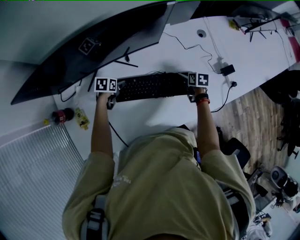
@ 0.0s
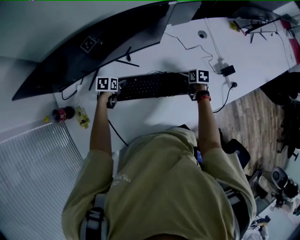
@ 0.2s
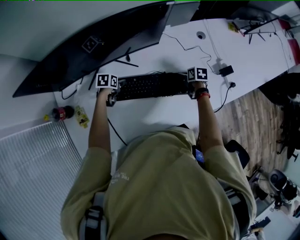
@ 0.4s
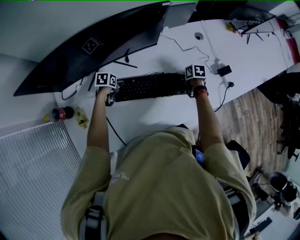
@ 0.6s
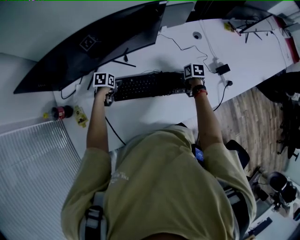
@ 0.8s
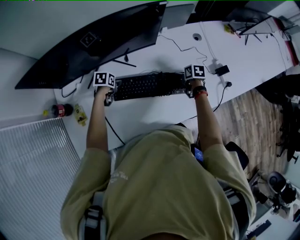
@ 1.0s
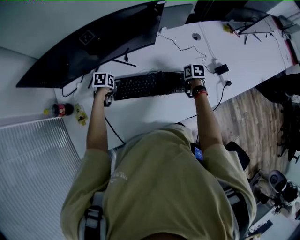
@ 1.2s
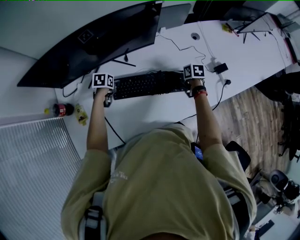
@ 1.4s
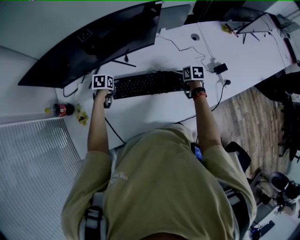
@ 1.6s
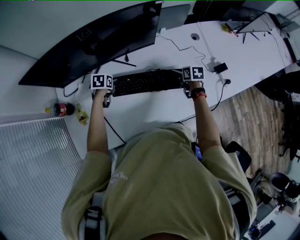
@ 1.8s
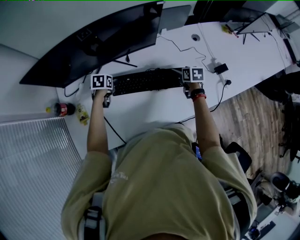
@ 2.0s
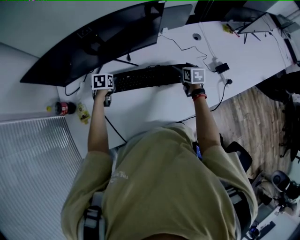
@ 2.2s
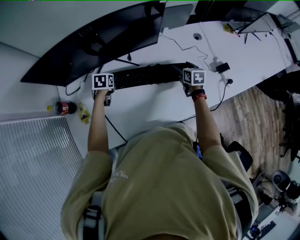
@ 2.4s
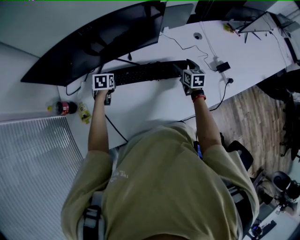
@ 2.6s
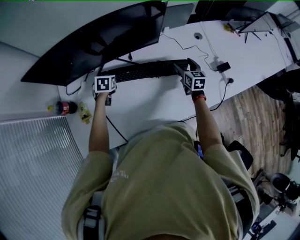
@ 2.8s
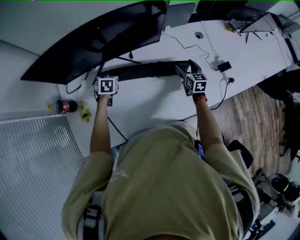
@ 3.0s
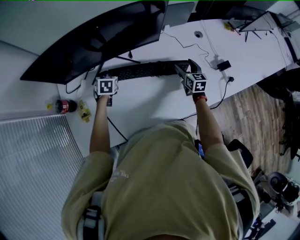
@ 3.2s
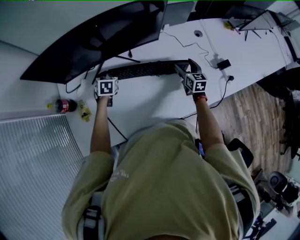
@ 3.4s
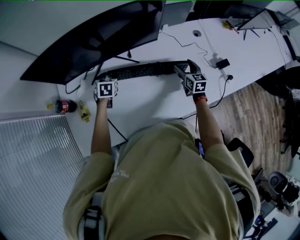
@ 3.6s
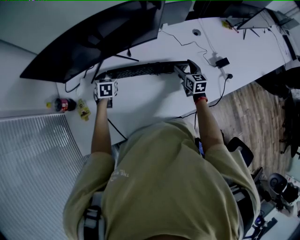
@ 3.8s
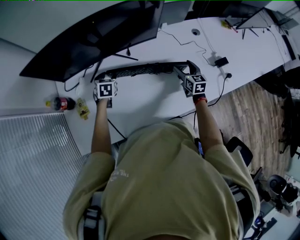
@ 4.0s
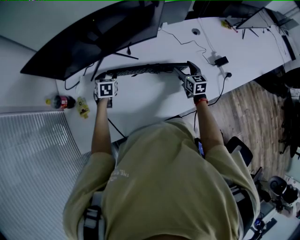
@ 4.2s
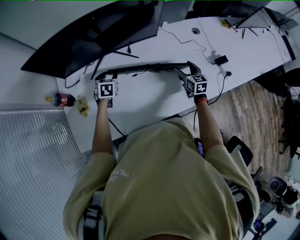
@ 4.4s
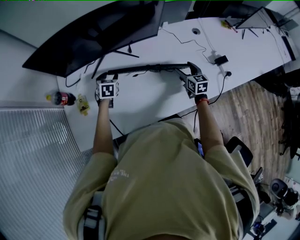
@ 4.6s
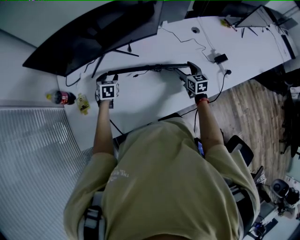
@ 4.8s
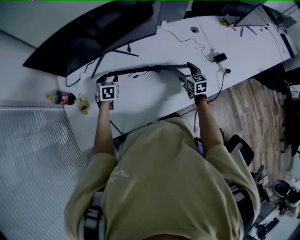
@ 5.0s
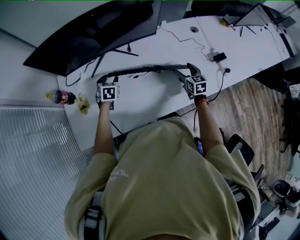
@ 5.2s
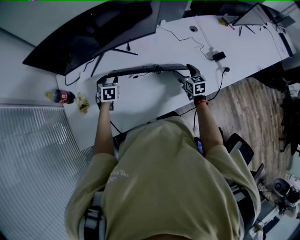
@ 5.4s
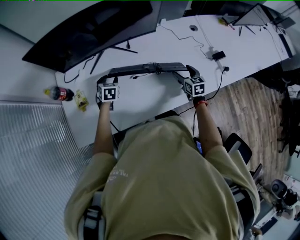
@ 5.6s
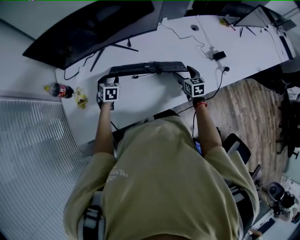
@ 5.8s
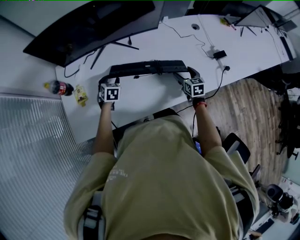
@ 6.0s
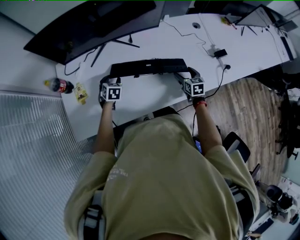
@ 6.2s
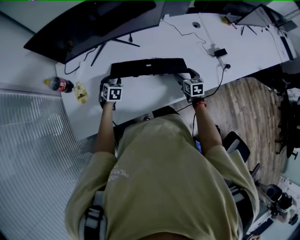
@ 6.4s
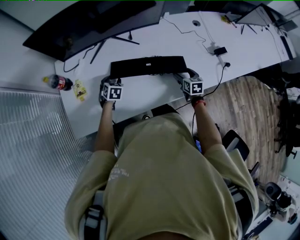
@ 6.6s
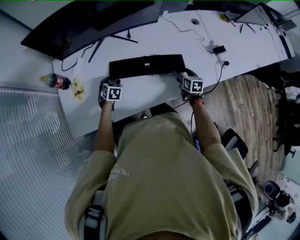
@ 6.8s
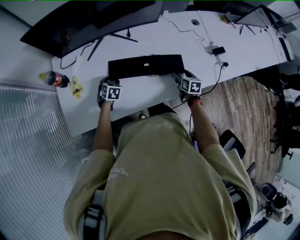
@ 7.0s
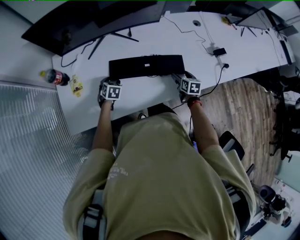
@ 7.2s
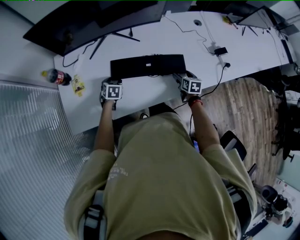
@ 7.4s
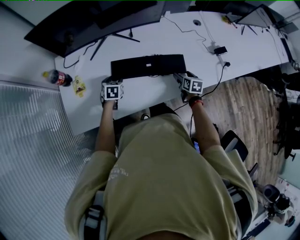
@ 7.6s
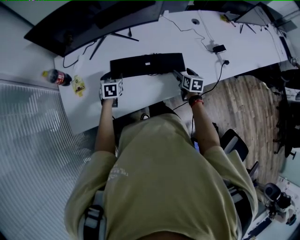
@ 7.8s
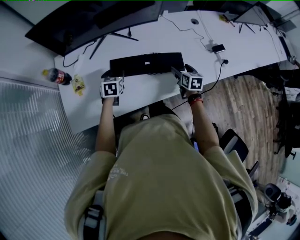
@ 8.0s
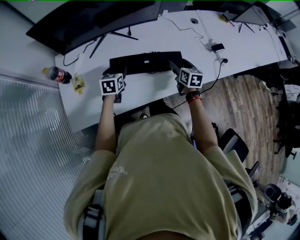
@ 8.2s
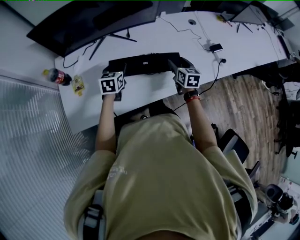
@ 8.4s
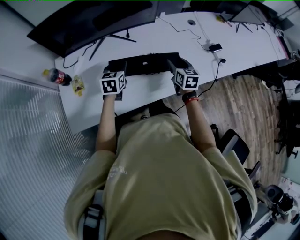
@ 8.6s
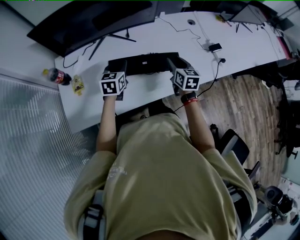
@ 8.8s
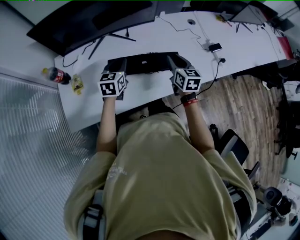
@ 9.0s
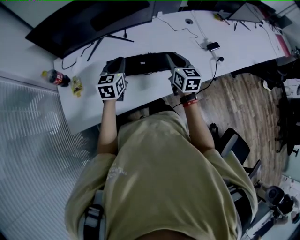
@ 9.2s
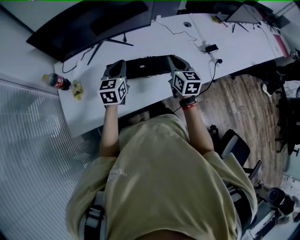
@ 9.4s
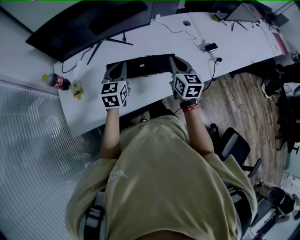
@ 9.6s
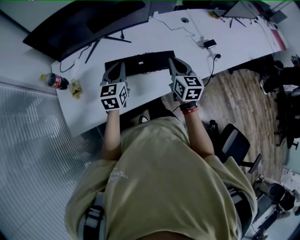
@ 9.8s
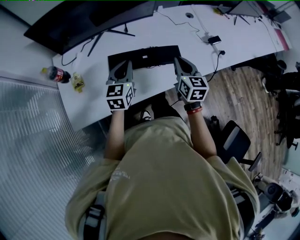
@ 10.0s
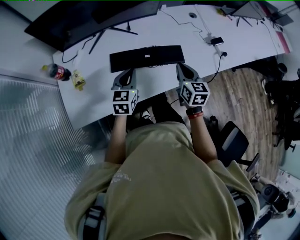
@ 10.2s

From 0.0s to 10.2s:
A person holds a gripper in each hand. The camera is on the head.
From 0.0s to 1.4s: The left gripper changes place by approximately 5 cm.
From 1.4s to 3.0s: The grippers both shift upward by some 5 cm. The right gripper points its fingers roughly 30 degrees further upward; the left gripper turns by about 30 degrees.
From 3.0s to 4.4s: The right gripper is displaced backward by roughly 5 cm.
From 4.4s to 5.8s: The two grippers go some 5 cm backward.
From 5.8s to 7.2s: The right gripper shifts about 5 cm downward. The left gripper goes some 10 cm downward and backward.
From 7.2s to 8.8s: The right gripper heads upward, covering roughly 15 cm, and closes; the left gripper is displaced upward and to the right by roughly 20 cm, changes its angle by roughly 30 degrees, and closes.
From 8.8s to 10.2s: The grippers both shift backward by some 10 cm. The right gripper closes its fingers.

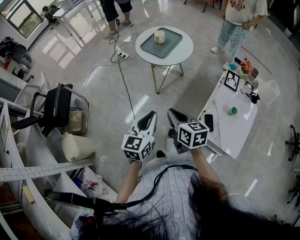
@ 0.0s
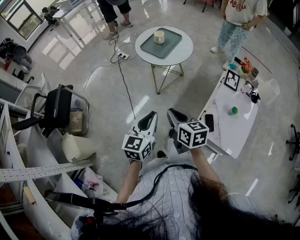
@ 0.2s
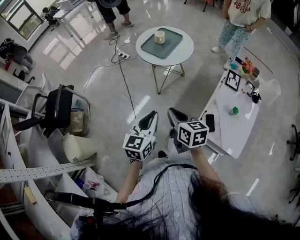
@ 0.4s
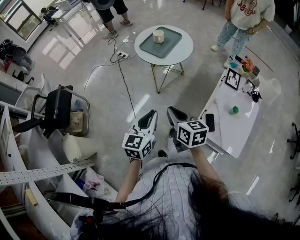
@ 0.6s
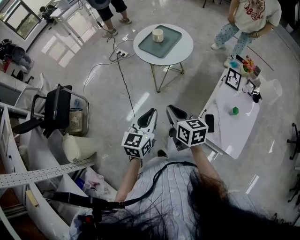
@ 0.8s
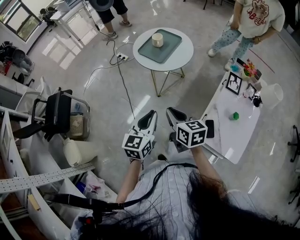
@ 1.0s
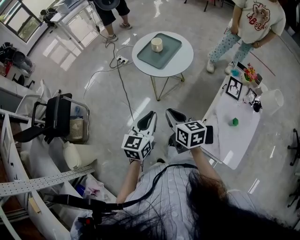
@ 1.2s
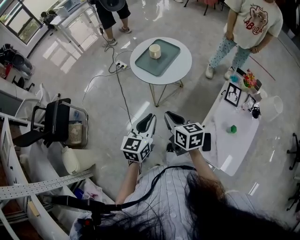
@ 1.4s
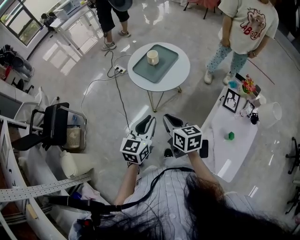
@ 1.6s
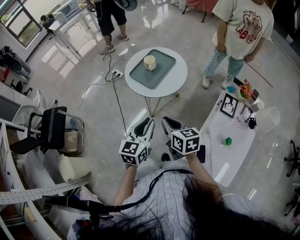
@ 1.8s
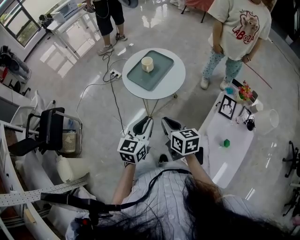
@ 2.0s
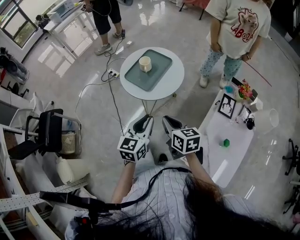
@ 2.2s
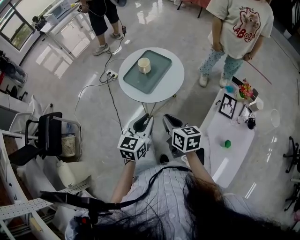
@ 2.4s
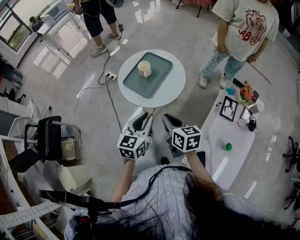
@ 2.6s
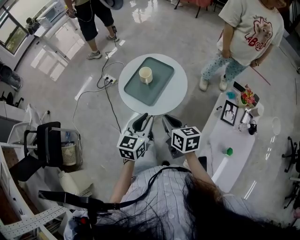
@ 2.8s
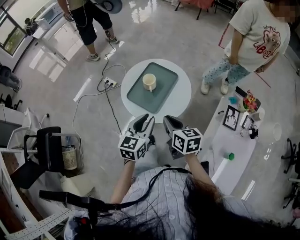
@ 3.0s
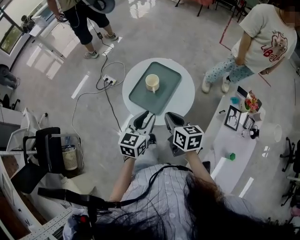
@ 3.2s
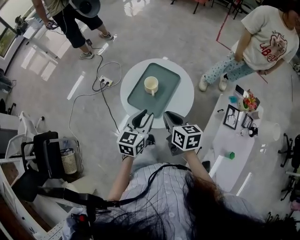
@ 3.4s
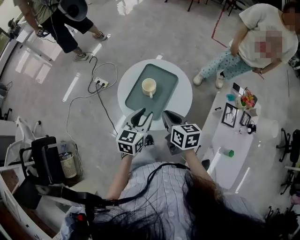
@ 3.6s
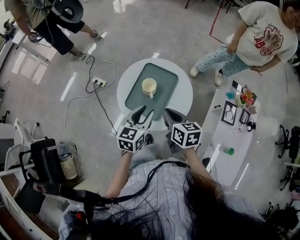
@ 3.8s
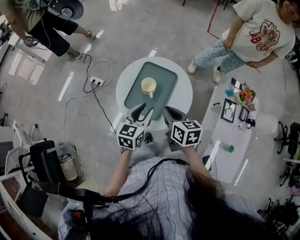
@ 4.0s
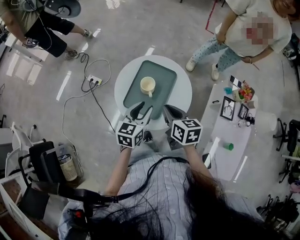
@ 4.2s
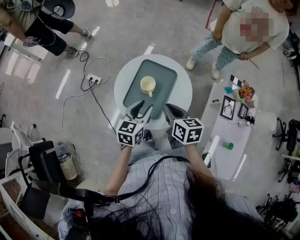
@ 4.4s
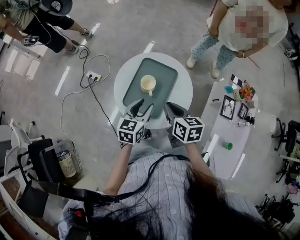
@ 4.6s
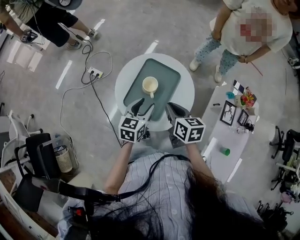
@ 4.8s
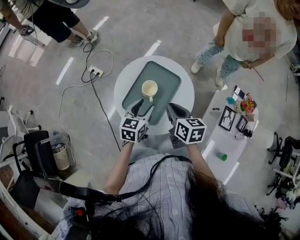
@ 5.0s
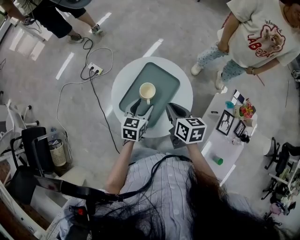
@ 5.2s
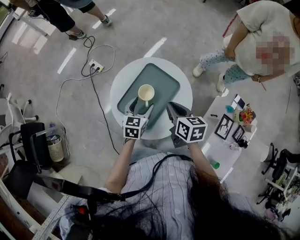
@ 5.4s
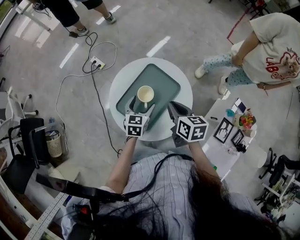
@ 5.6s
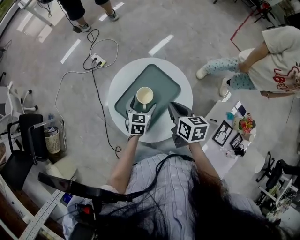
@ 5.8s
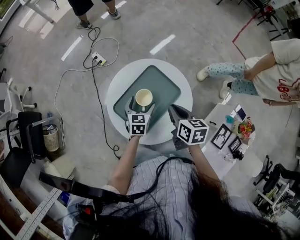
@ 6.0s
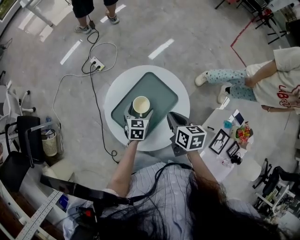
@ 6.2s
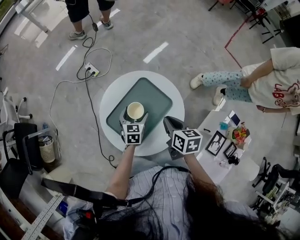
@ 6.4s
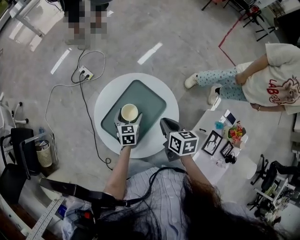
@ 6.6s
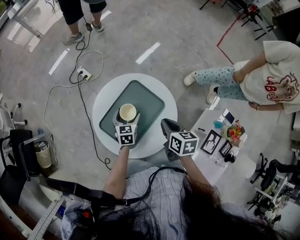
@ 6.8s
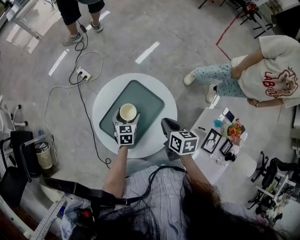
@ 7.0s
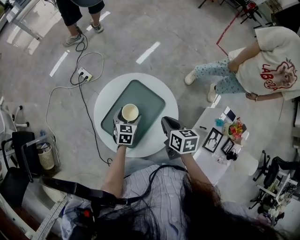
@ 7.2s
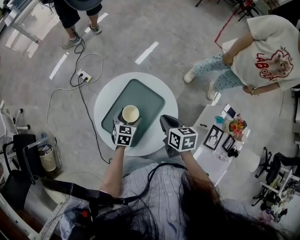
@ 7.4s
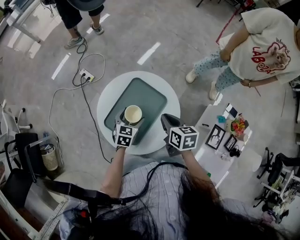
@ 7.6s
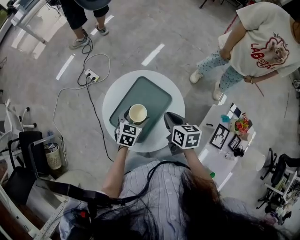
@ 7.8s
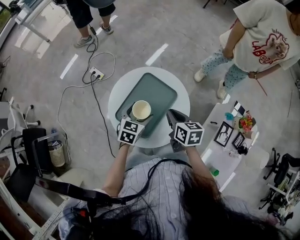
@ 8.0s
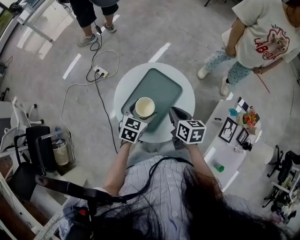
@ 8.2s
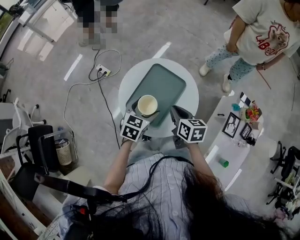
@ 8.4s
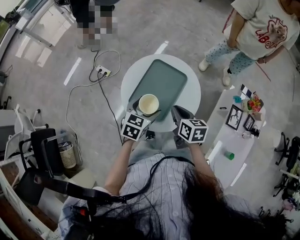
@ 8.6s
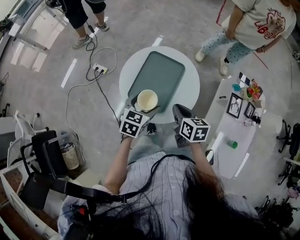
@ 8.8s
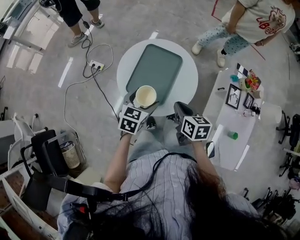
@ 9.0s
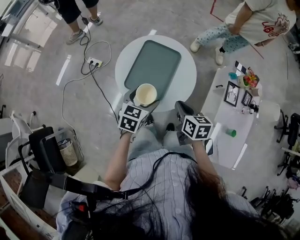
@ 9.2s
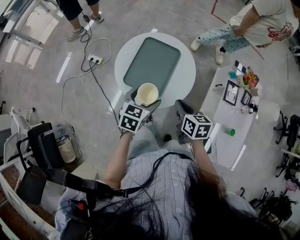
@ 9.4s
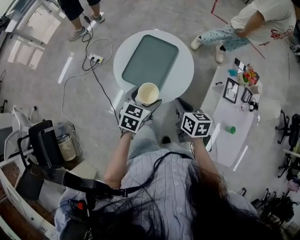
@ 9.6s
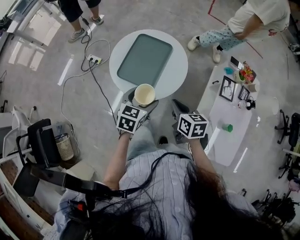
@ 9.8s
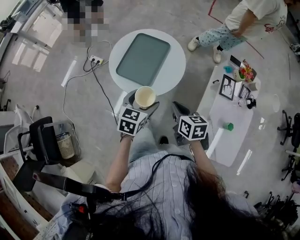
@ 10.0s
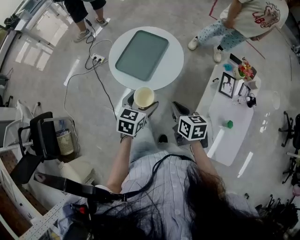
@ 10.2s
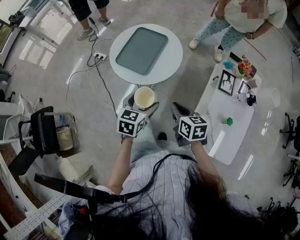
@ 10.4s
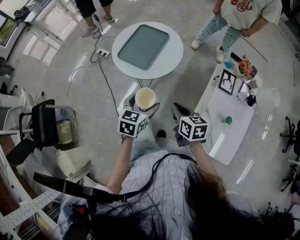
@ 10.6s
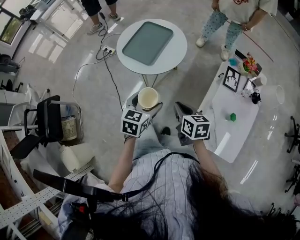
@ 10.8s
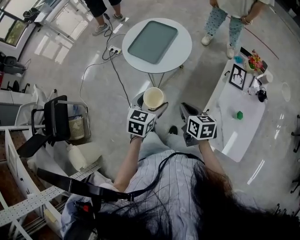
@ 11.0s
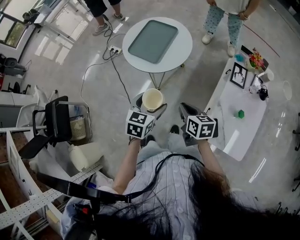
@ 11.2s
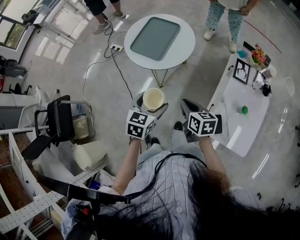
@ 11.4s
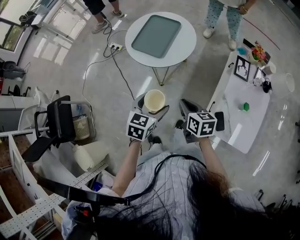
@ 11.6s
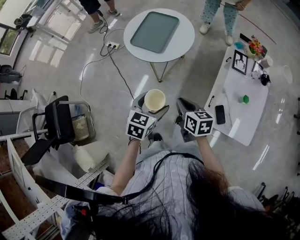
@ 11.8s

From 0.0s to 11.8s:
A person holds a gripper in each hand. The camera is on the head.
From 0.0s to 1.4s: The grippers both shift forward by roughly 15 cm.
From 1.4s to 3.0s: The grippers both shift forward by approximately 25 cm.
From 3.0s to 4.4s: The right gripper is displaced forward by about 10 cm; the left gripper heads forward and downward, covering roughly 15 cm.
From 4.4s to 6.0s: The right gripper goes about 15 cm forward, to the right and downward. Meanwhile the left gripper goes about 20 cm downward and forward, changes its angle by about 30 degrees, and opens its fingers.
From 6.0s to 7.4s: There are only small adjustments of the grippers.
From 7.4s to 8.8s: The right gripper moves backward and to the left, approximately 15 cm. Meanwhile the left gripper shifts some 20 cm upward and backward, and swivels some 20 degrees.
From 8.8s to 10.4s: Both grippers travel together backward and to the right, roughly 25 cm.
From 10.4s to 11.8s: The left gripper heads backward, covering about 15 cm; the right gripper shifts some 15 cm backward and to the left.

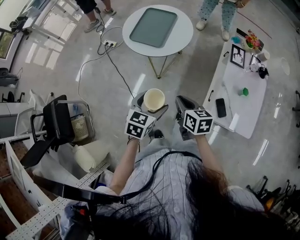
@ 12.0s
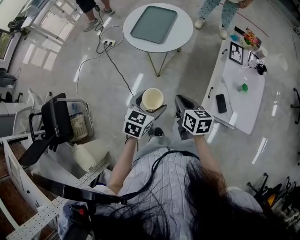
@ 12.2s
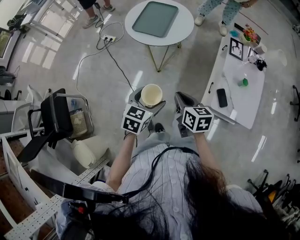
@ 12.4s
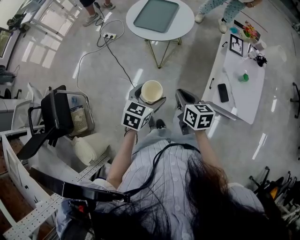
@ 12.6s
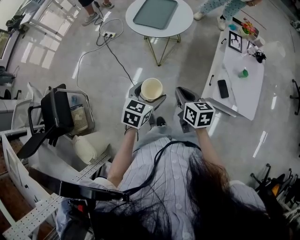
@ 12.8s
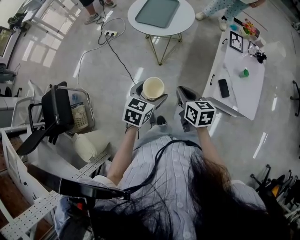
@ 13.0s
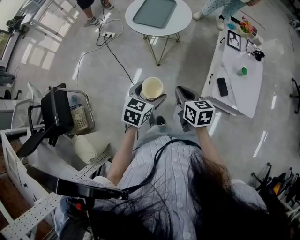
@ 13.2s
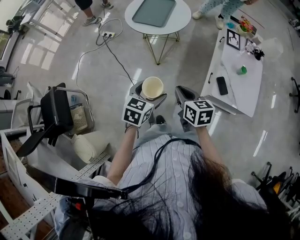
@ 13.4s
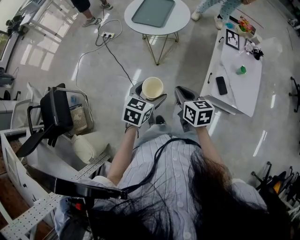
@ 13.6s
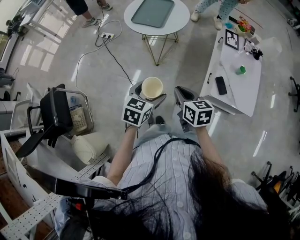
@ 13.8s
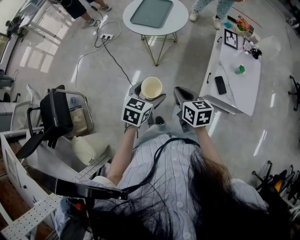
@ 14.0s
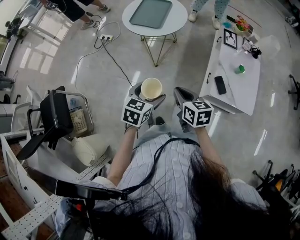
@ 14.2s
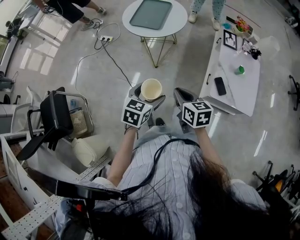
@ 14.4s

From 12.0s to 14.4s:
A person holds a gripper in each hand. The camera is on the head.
From 12.0s to 13.2s: Both grippers move backward, some 10 cm.
From 13.2s to 14.4s: The grippers stay close to where they were, moving slightly.
